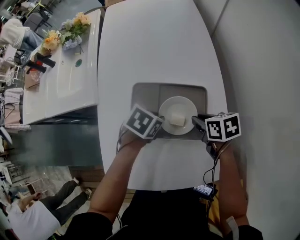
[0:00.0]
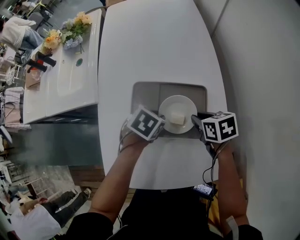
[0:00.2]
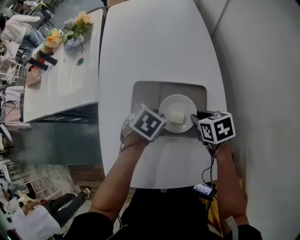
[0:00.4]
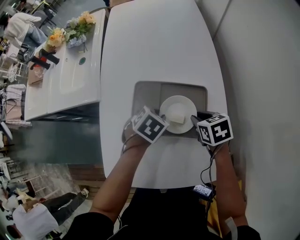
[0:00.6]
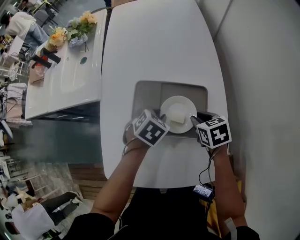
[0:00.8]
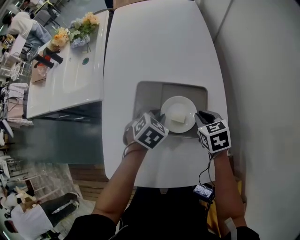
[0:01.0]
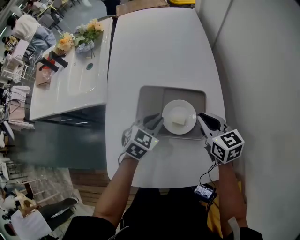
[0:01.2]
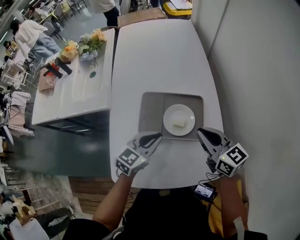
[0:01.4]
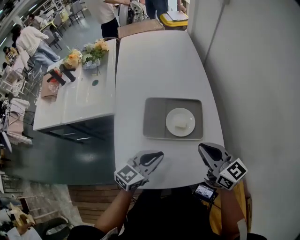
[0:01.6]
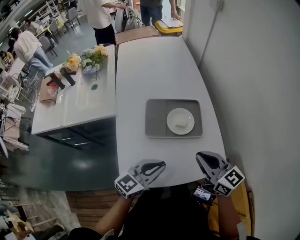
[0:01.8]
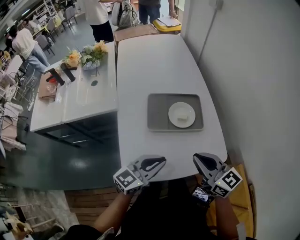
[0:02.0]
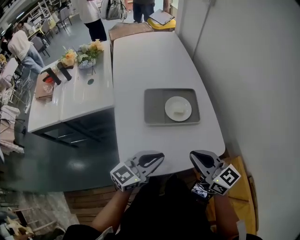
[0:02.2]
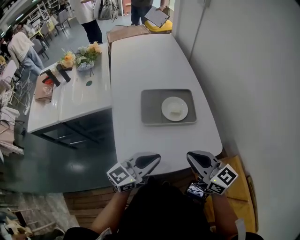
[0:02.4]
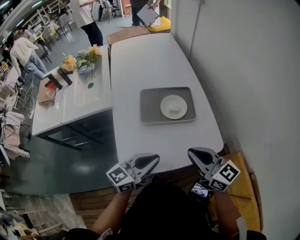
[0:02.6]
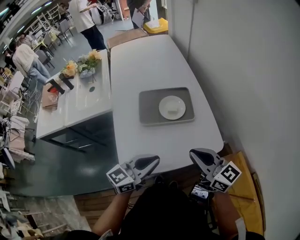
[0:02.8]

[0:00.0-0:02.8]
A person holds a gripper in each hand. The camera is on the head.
0:00.0 to 0:01.4: The right gripper shifts roughly 15 cm upward, and angles its fingers upward, by roughly 40 degrees; the left gripper is displaced upward by some 10 cm, and angles its fingers upward, by approximately 40 degrees.
0:01.4 to 0:02.8: The right gripper shifts about 25 cm backward, while the left gripper travels backward and upward by roughly 25 cm, and swivels roughly 30 degrees.

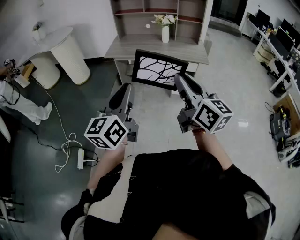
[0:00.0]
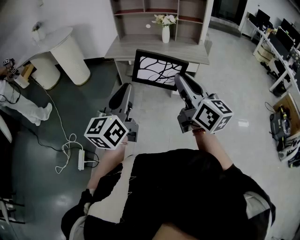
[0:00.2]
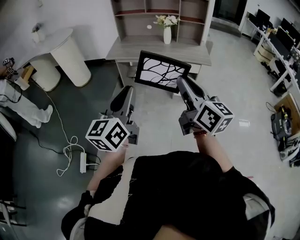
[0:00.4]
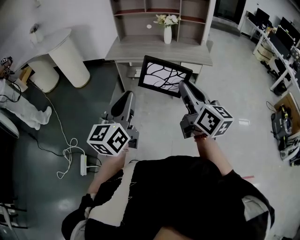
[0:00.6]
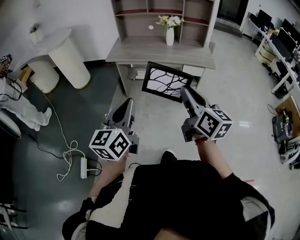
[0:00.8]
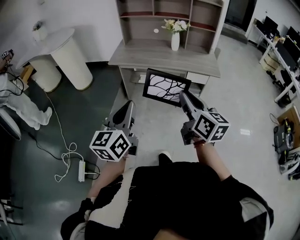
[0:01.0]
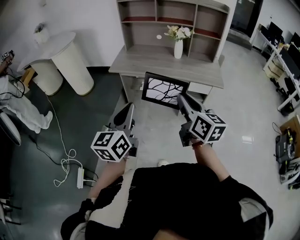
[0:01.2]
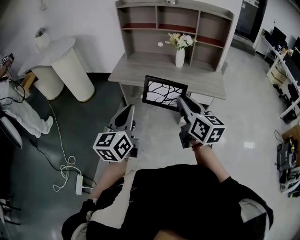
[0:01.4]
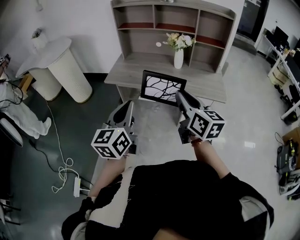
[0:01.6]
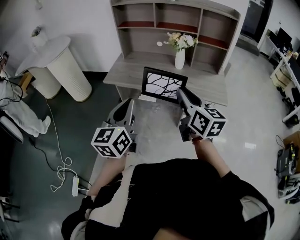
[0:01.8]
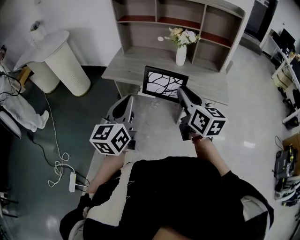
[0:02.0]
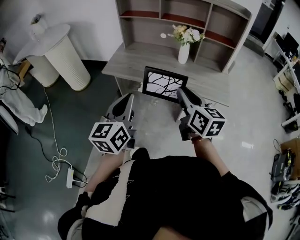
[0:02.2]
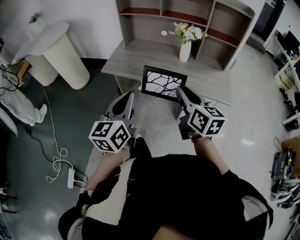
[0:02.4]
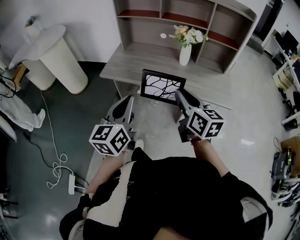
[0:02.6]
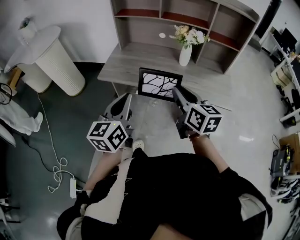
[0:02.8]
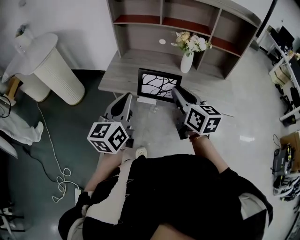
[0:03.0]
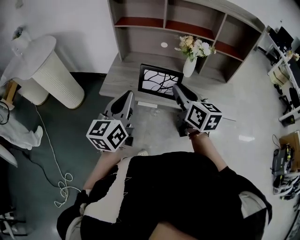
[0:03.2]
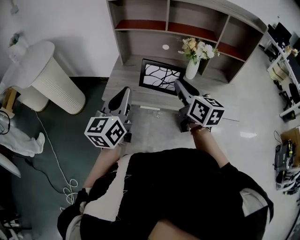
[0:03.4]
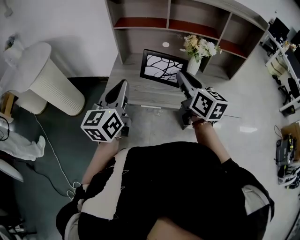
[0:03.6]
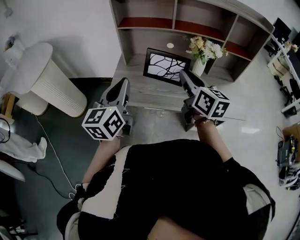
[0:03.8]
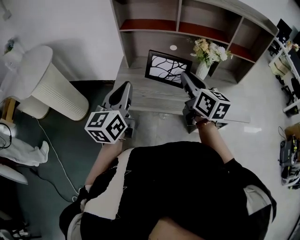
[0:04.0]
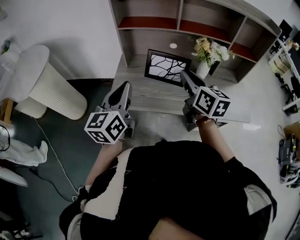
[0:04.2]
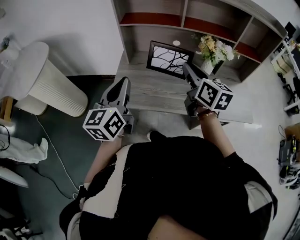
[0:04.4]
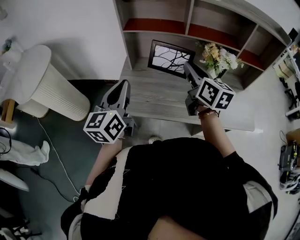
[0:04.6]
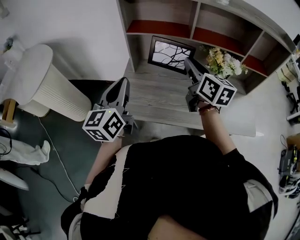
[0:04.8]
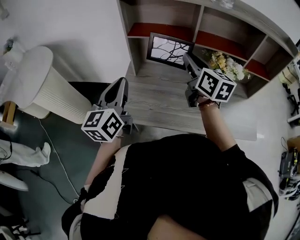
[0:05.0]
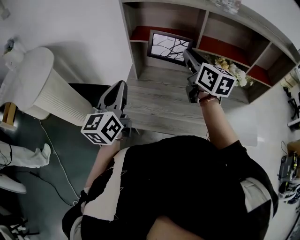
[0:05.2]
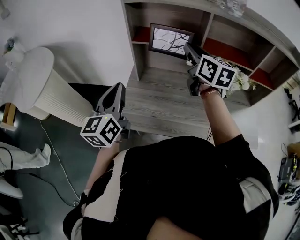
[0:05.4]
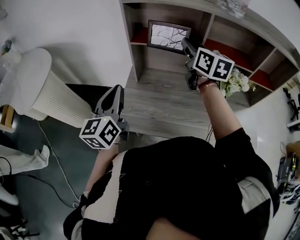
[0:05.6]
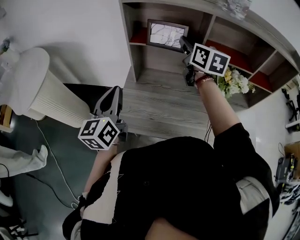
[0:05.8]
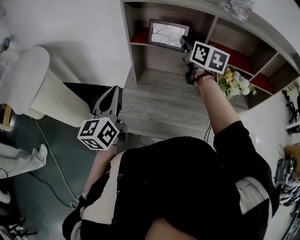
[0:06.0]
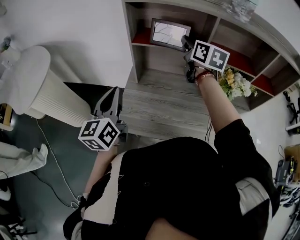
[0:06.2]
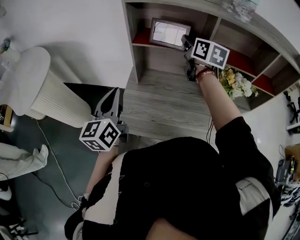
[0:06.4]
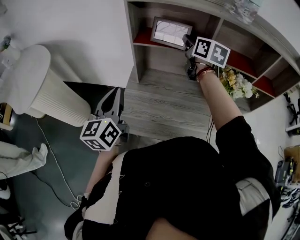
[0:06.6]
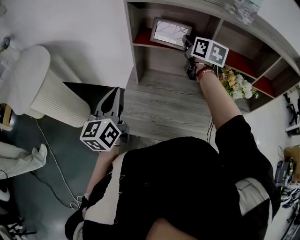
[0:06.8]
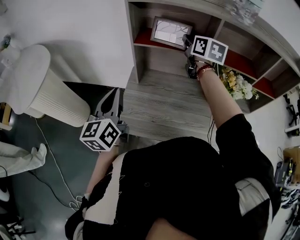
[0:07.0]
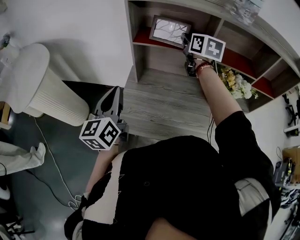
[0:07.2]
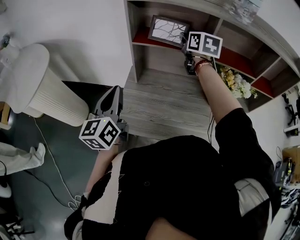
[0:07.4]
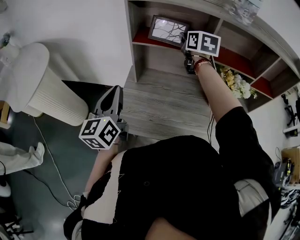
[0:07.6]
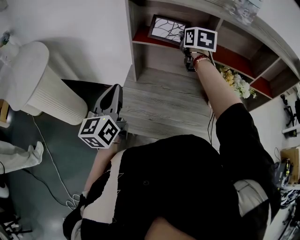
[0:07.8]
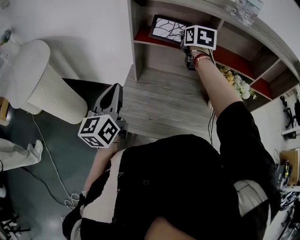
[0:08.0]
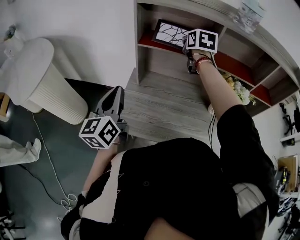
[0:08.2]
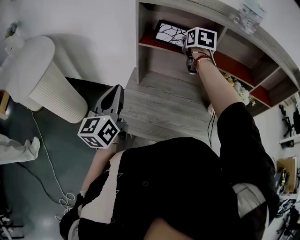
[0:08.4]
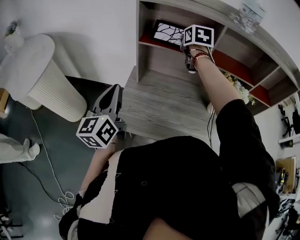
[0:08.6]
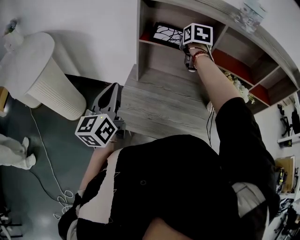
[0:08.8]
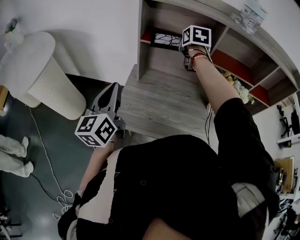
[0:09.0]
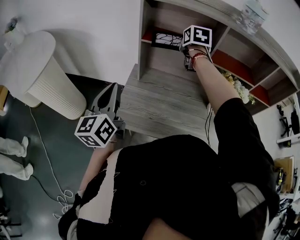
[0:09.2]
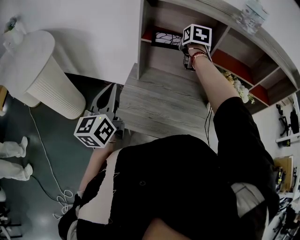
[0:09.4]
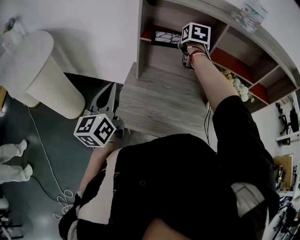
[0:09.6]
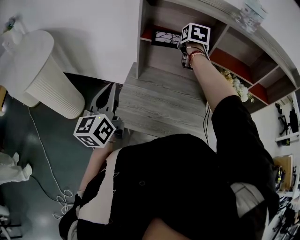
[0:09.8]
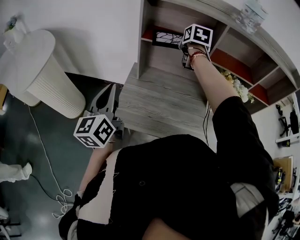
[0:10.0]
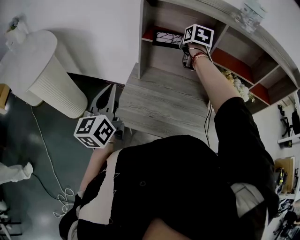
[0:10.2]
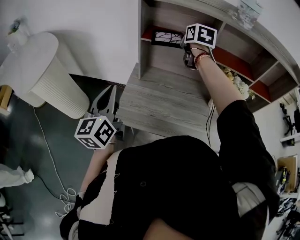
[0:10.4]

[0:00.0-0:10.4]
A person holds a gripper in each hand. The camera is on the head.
0:00.0 to 0:01.4: The grippers both shift forward by some 25 cm.
0:01.4 to 0:03.0: Both grippers move forward, some 25 cm.
0:03.0 to 0:04.4: The left gripper moves forward and to the left, about 20 cm, while the right gripper heads forward, covering some 20 cm.
0:04.4 to 0:06.0: The right gripper goes about 25 cm forward; the left gripper heads forward and to the left, covering some 15 cm.
0:06.0 to 0:07.4: The right gripper shifts about 5 cm forward.
0:07.4 to 0:10.4: The grippers make only small movements.

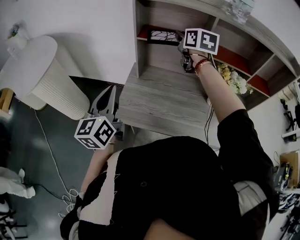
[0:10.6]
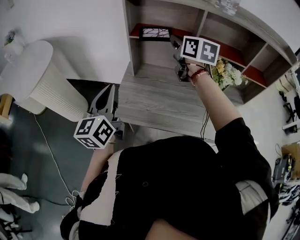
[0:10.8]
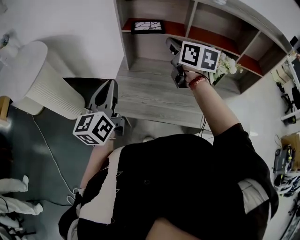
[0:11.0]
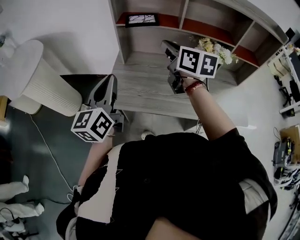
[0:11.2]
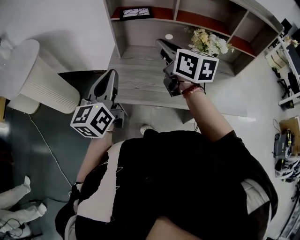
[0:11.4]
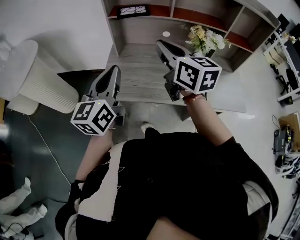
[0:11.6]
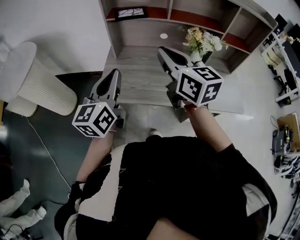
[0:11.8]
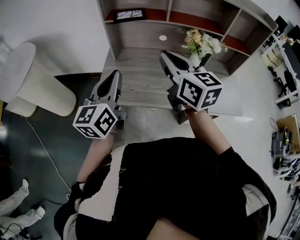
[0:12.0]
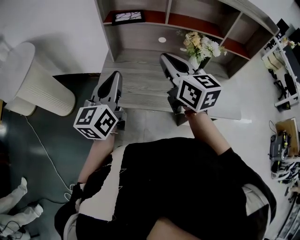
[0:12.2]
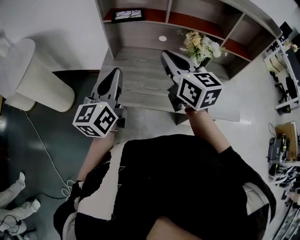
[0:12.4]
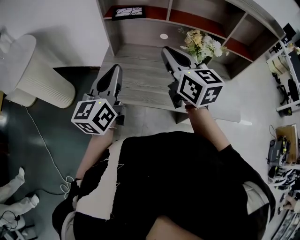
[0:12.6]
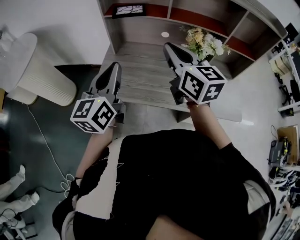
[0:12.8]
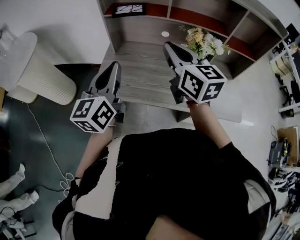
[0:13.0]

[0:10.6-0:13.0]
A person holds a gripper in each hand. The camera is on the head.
0:10.6 to 0:11.8: The left gripper is displaced to the right and backward by approximately 15 cm; the right gripper travels backward by some 30 cm.
0:11.8 to 0:13.0: The right gripper moves to the right, about 5 cm.

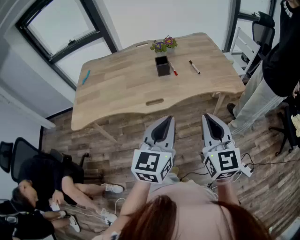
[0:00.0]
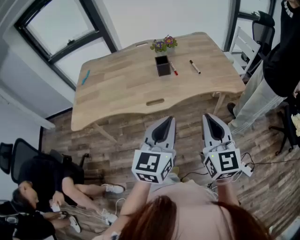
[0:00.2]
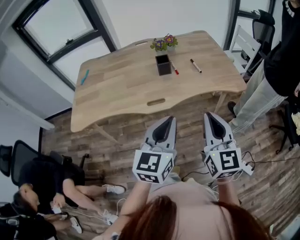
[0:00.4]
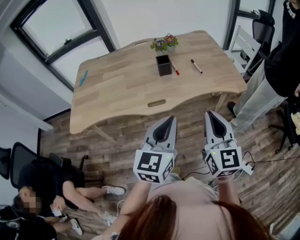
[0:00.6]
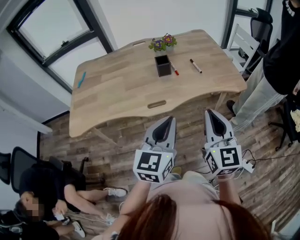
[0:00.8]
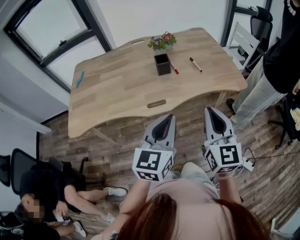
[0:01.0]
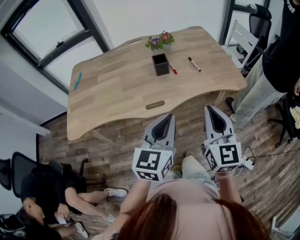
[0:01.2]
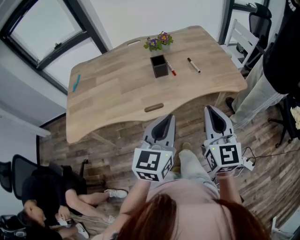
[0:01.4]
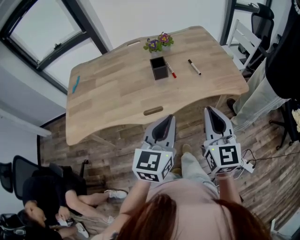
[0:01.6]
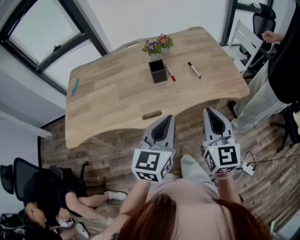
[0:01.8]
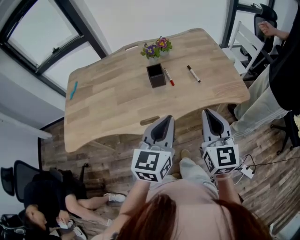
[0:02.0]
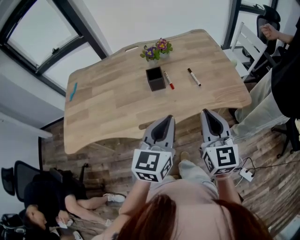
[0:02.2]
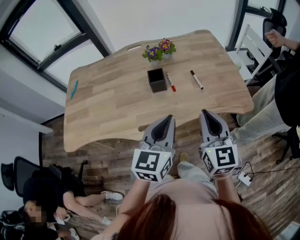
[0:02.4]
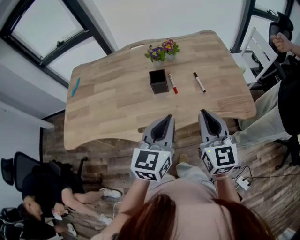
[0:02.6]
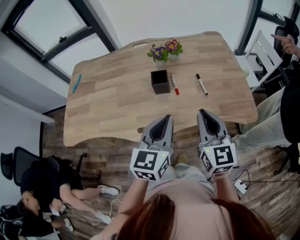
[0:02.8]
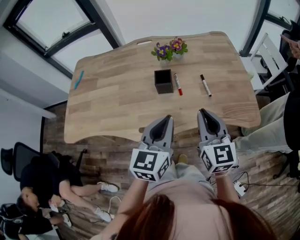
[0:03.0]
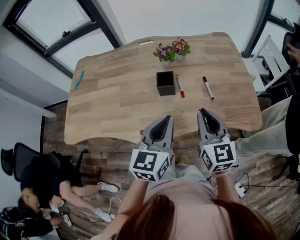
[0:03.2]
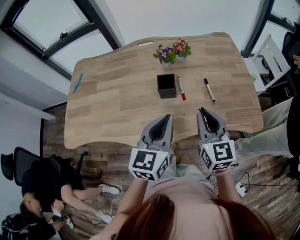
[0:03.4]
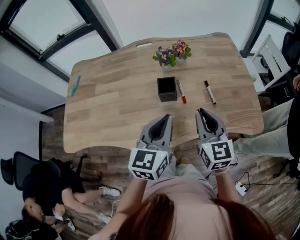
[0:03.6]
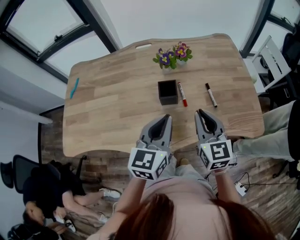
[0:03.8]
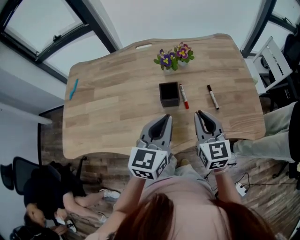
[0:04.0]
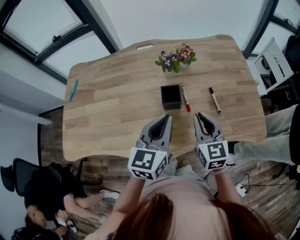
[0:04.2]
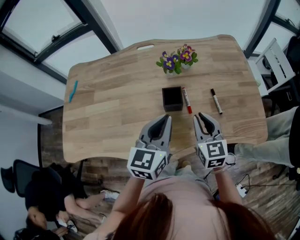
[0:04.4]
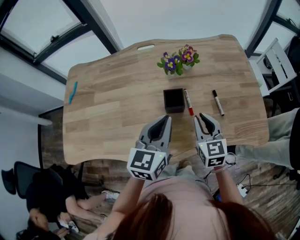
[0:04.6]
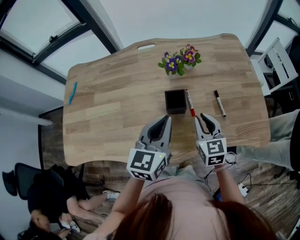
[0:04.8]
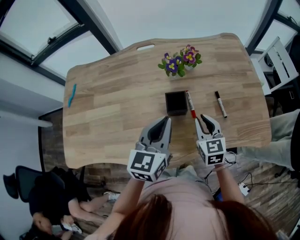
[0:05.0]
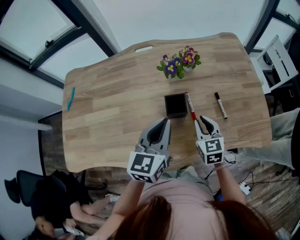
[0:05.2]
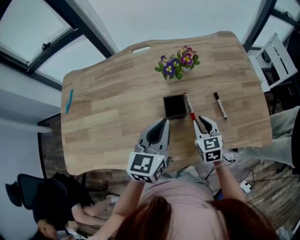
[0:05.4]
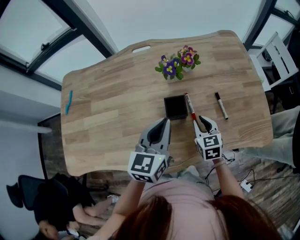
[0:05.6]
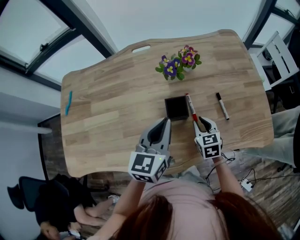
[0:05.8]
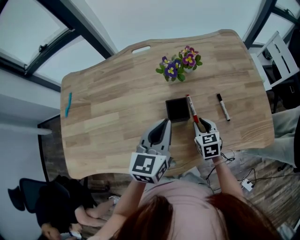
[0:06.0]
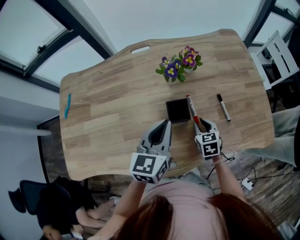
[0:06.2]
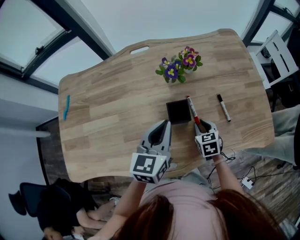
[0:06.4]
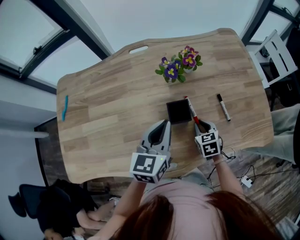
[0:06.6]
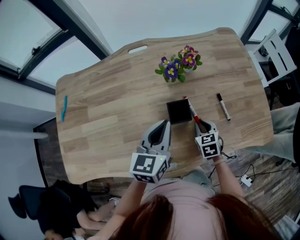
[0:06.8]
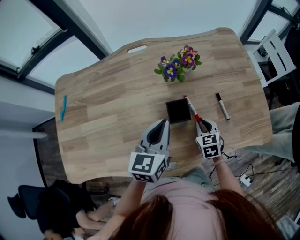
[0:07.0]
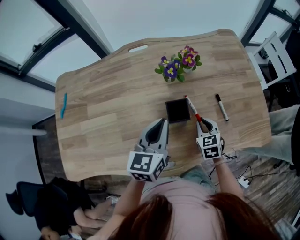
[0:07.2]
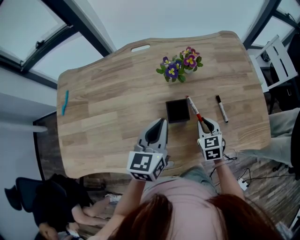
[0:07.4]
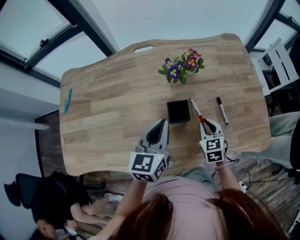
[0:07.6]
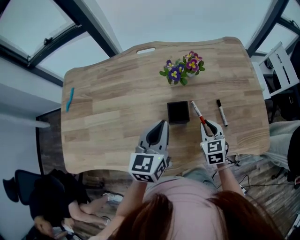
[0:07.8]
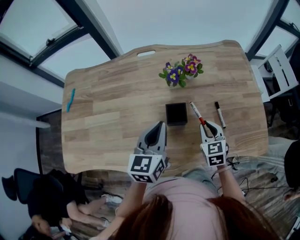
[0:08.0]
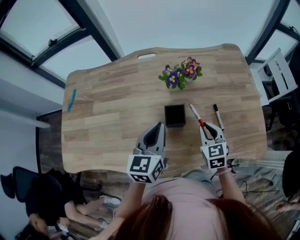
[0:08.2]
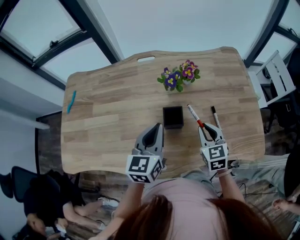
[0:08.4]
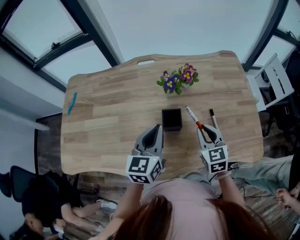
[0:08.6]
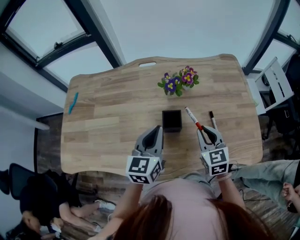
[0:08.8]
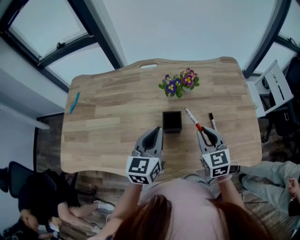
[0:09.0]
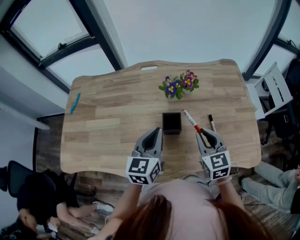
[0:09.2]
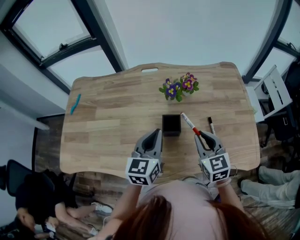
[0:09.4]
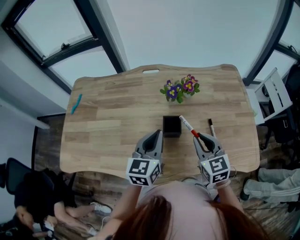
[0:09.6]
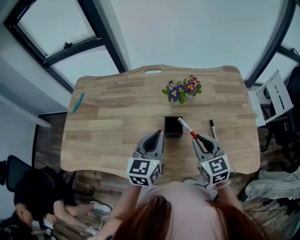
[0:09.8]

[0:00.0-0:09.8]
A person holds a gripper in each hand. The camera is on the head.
0:00.0 to 0:01.4: The grippers both shift forward by about 10 cm.
0:01.4 to 0:02.8: Both grippers travel together forward, roughly 20 cm.
0:02.8 to 0:04.2: The left gripper travels forward and to the left by about 15 cm. Meanwhile the right gripper goes about 15 cm forward, downward and to the left.
0:04.2 to 0:05.6: The left gripper is displaced forward by roughly 5 cm. Meanwhile the right gripper is displaced downward and forward by about 15 cm.
0:05.6 to 0:07.0: The grippers stay close to where they were, moving slightly.
0:07.0 to 0:08.4: The right gripper moves upward, some 10 cm.
0:08.4 to 0:09.8: The right gripper goes some 10 cm upward.
